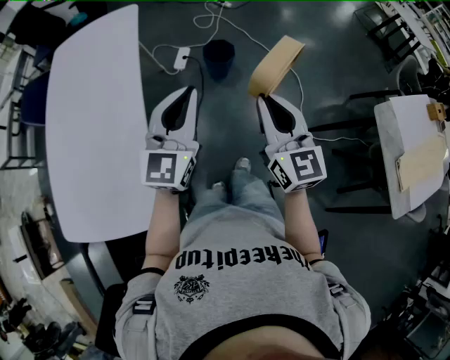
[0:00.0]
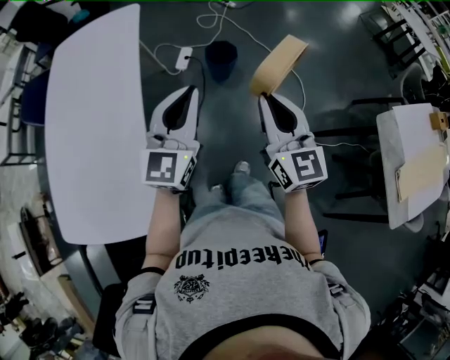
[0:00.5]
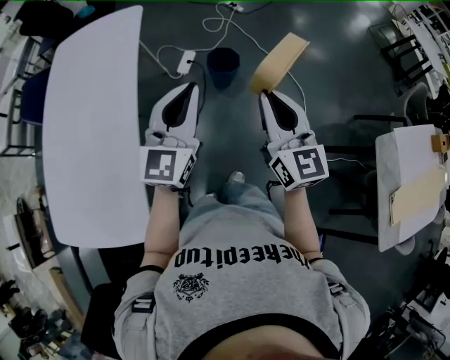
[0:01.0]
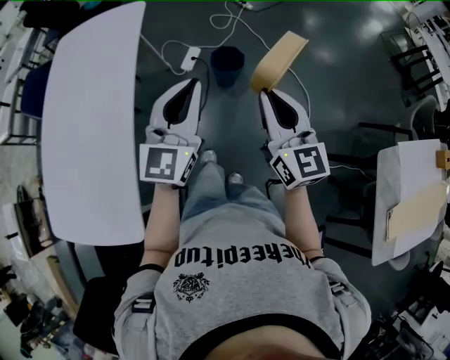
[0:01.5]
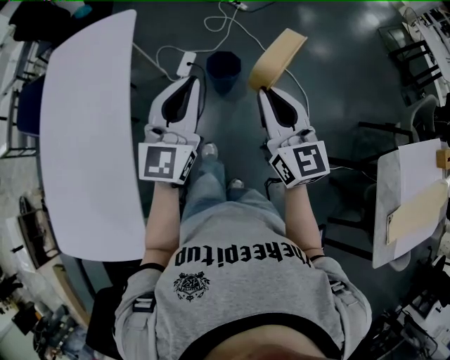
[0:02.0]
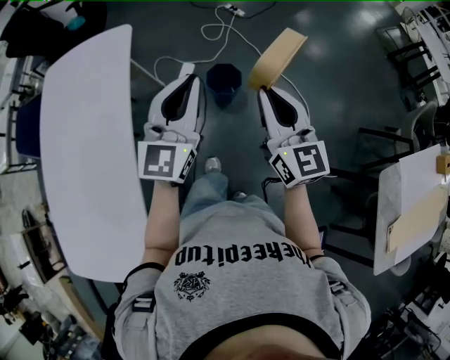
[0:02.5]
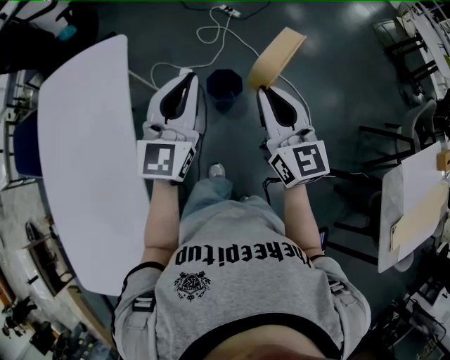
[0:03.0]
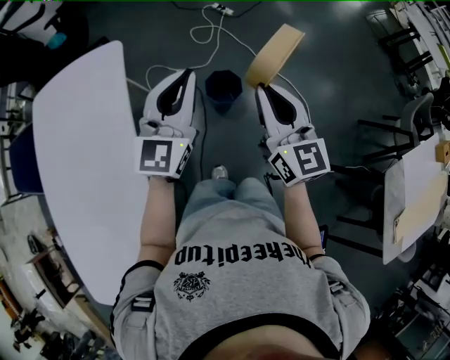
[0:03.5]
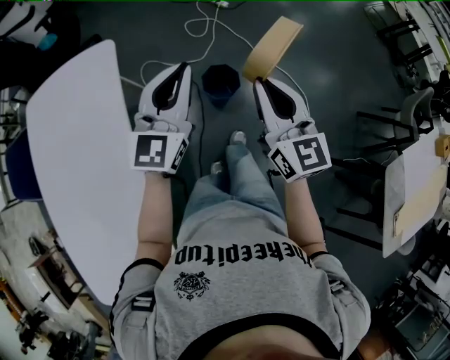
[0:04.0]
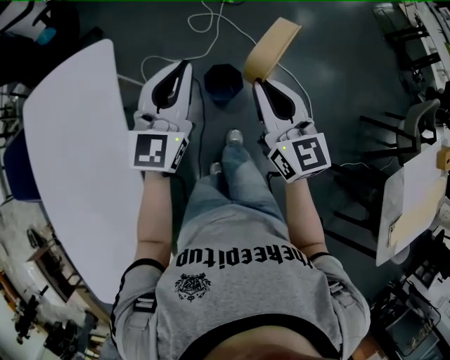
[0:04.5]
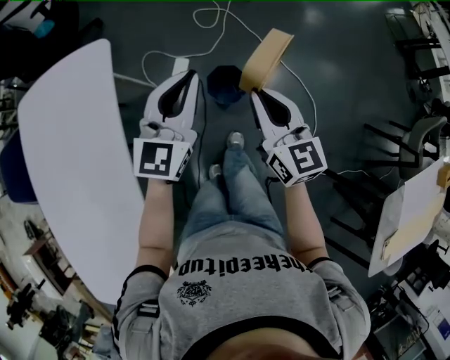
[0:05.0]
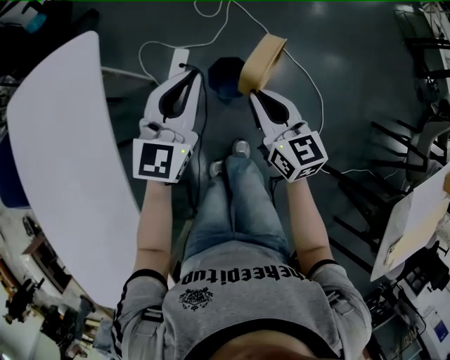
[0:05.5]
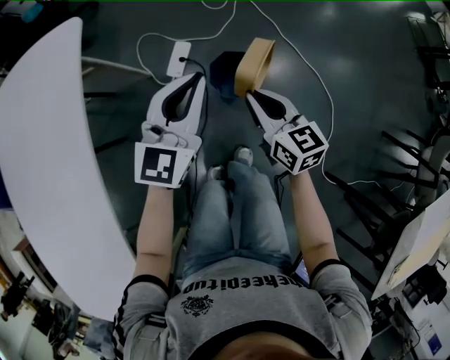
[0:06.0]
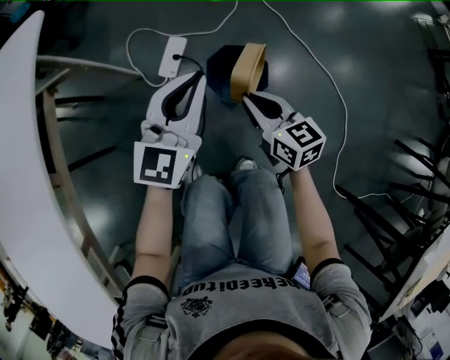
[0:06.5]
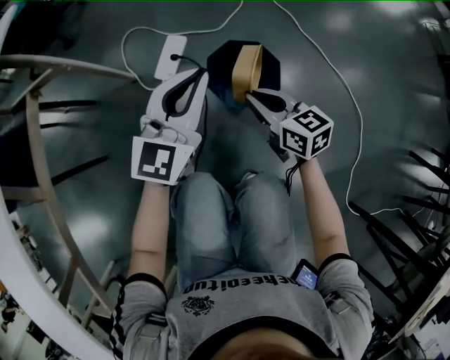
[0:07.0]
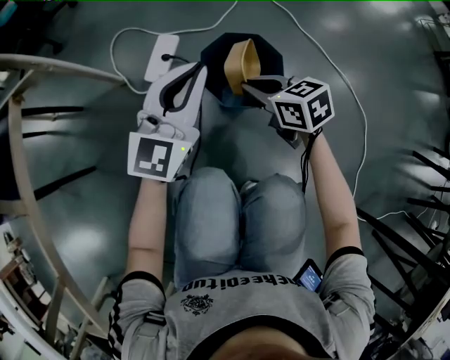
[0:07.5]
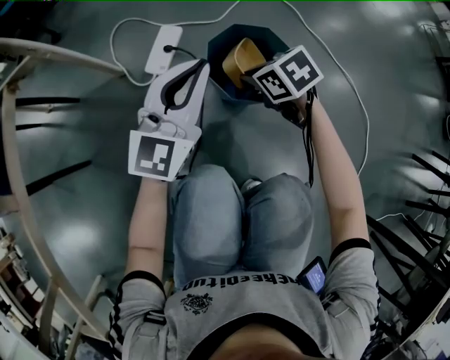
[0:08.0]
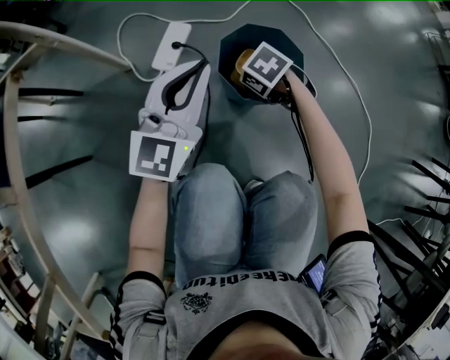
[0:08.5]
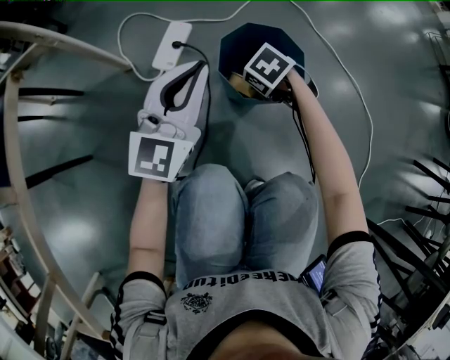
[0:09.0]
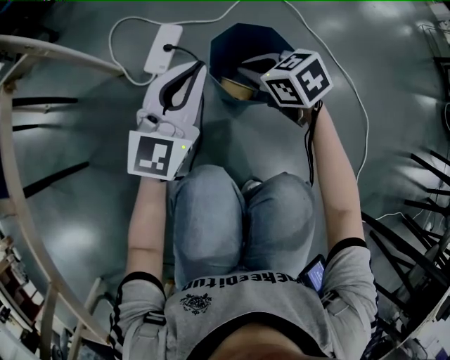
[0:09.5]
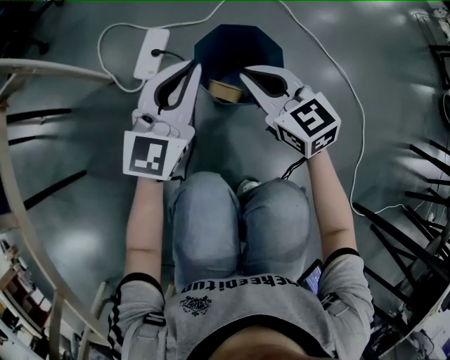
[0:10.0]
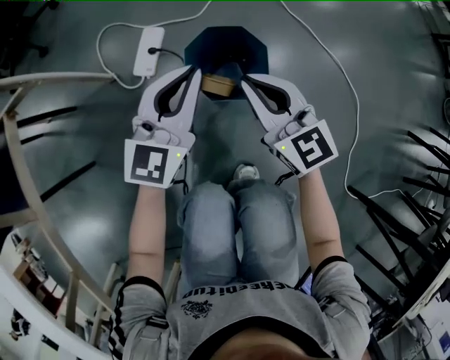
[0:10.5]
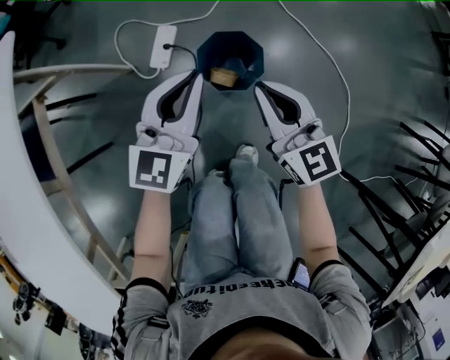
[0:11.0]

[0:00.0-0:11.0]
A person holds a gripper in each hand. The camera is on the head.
0.0 to 2.0 s: The two grippers go some 20 cm forward.
2.0 to 3.5 s: Both grippers move forward, about 20 cm.
3.5 to 5.5 s: The grippers both shift downward and forward by about 20 cm. The right gripper turns by about 20 degrees.
5.5 to 7.5 s: The two grippers go roughly 40 cm downward. The right gripper swivels roughly 30 degrees.
7.5 to 9.0 s: The right gripper is displaced downward by roughly 10 cm, and angles its fingers downward, by roughly 40 degrees. Meanwhile the left gripper ends up approximately 5 cm from where it was.
9.0 to 11.0 s: The left gripper heads upward, covering some 20 cm. The right gripper is displaced upward by approximately 35 cm, and tips its fingers upward by about 70 degrees.

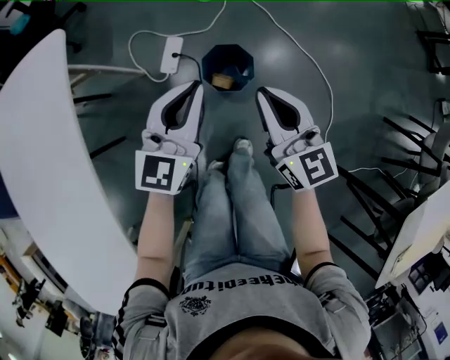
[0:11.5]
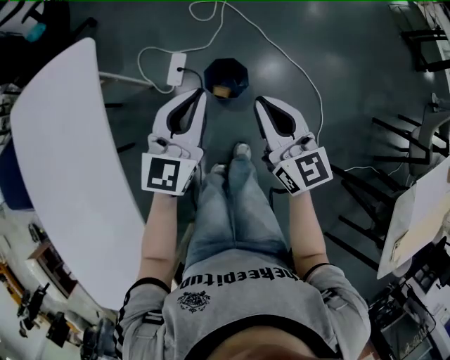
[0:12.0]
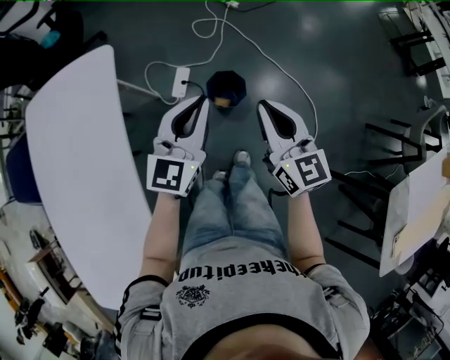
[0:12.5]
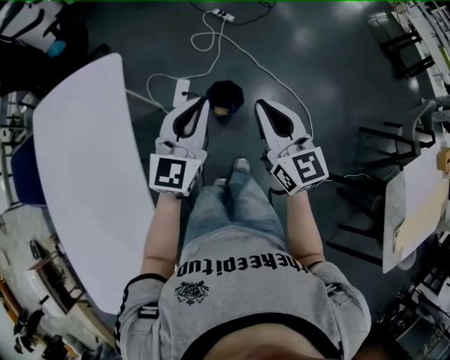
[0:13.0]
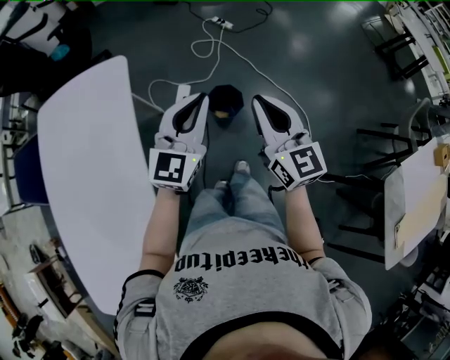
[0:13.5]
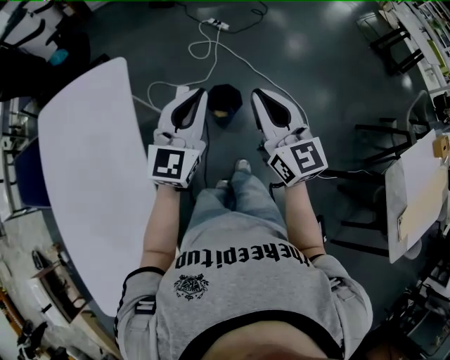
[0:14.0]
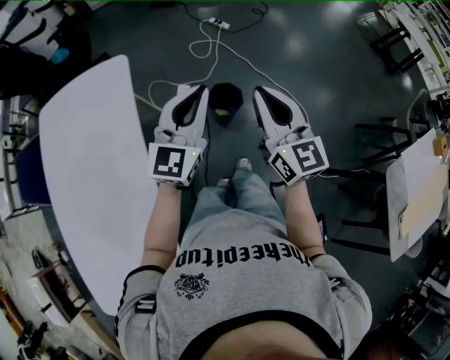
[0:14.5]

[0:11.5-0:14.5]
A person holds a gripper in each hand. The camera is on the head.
11.5 to 13.0 s: Both grippers travel together upward and backward, approximately 25 cm.
13.0 to 14.5 s: The right gripper is displaced upward by about 5 cm. The left gripper ends up approximately 5 cm from where it was.

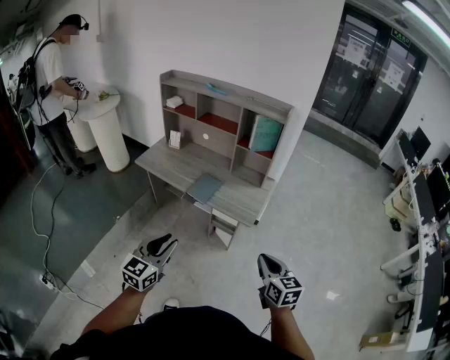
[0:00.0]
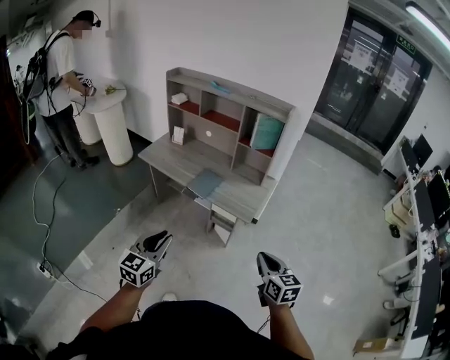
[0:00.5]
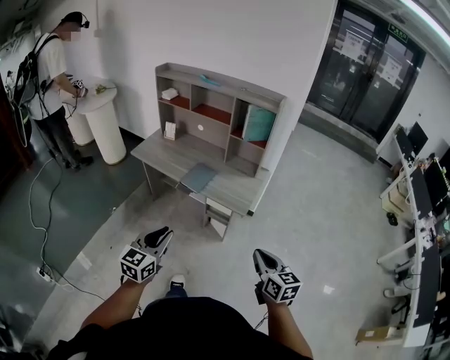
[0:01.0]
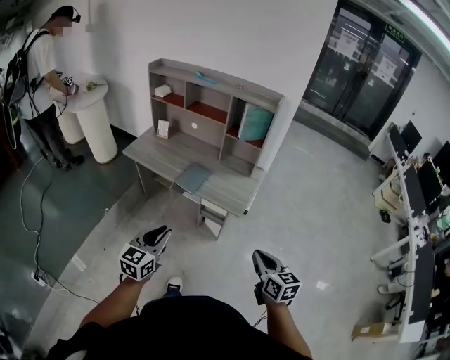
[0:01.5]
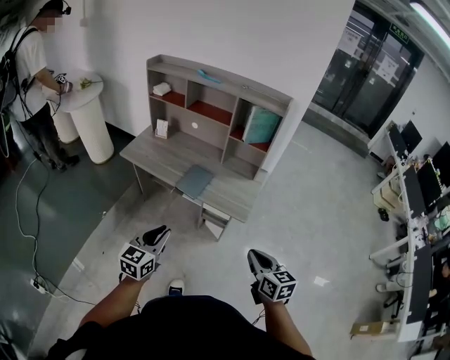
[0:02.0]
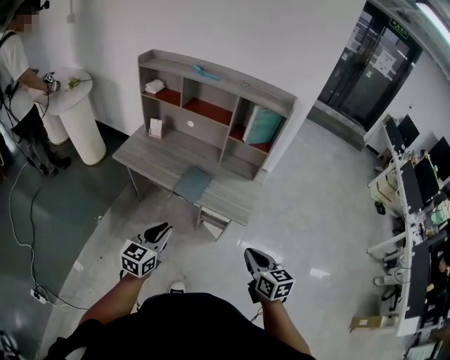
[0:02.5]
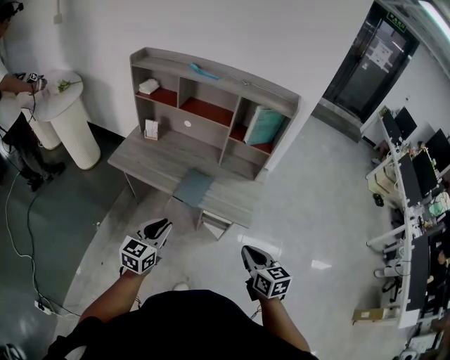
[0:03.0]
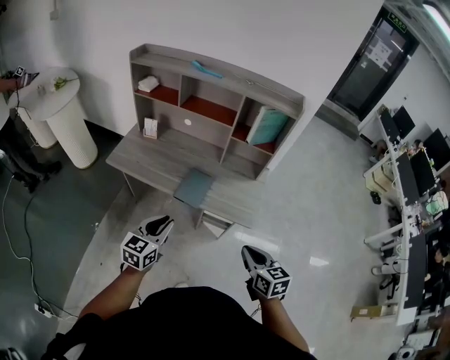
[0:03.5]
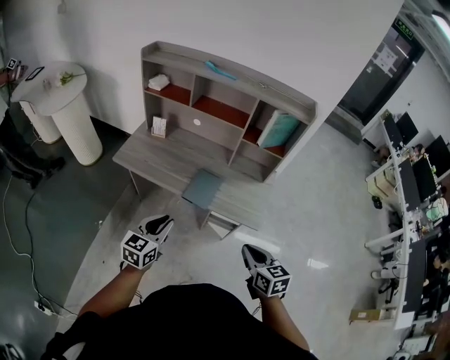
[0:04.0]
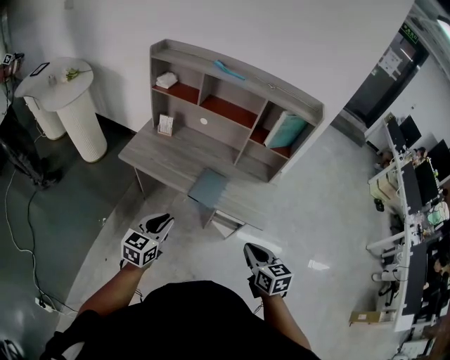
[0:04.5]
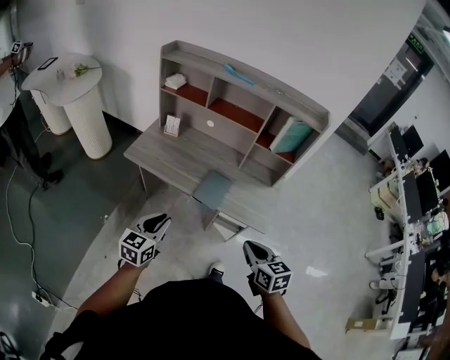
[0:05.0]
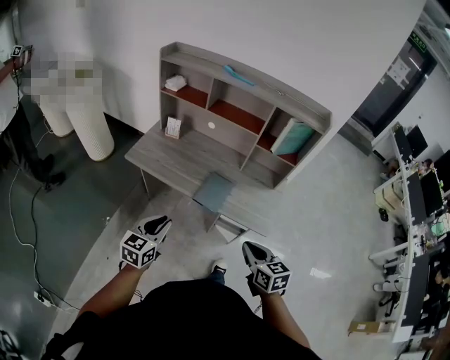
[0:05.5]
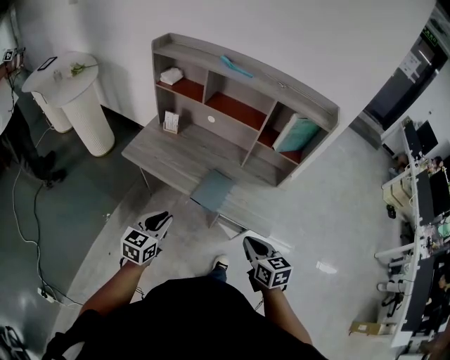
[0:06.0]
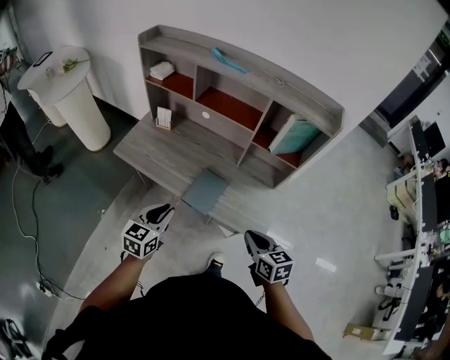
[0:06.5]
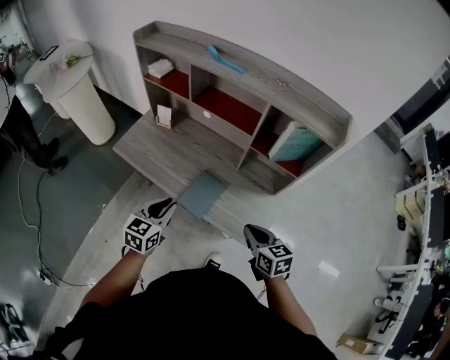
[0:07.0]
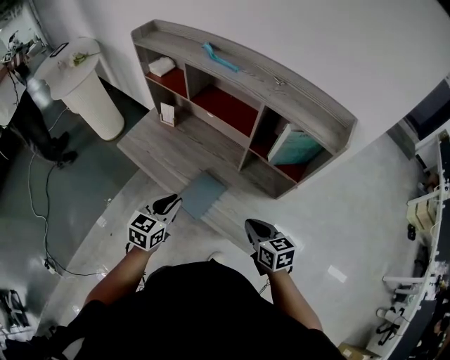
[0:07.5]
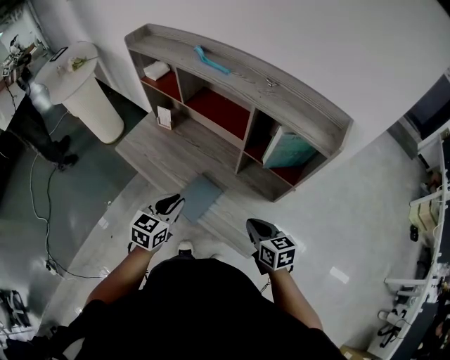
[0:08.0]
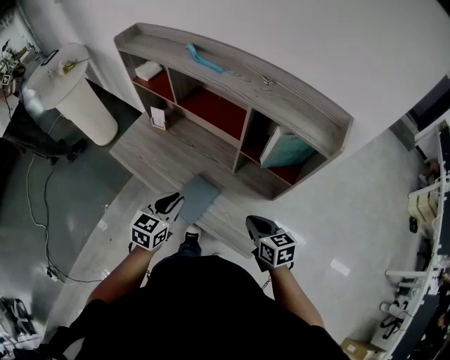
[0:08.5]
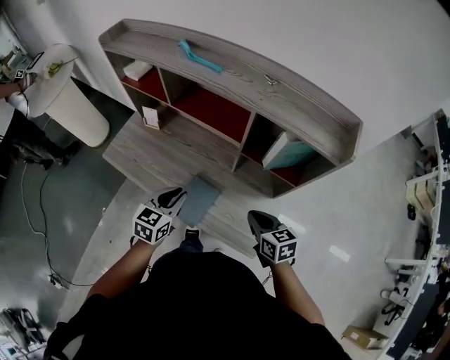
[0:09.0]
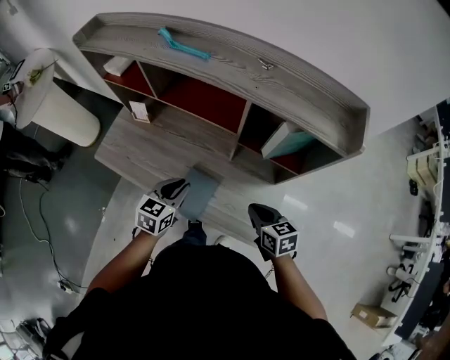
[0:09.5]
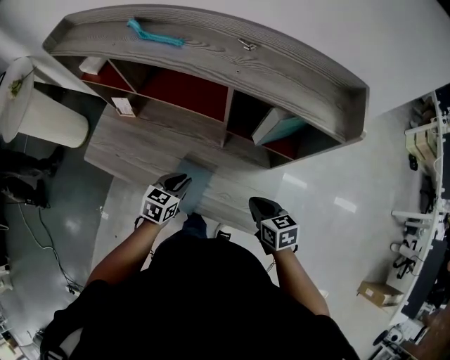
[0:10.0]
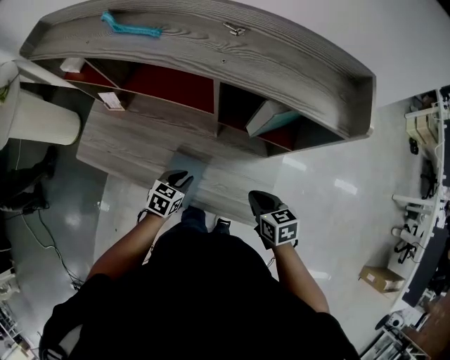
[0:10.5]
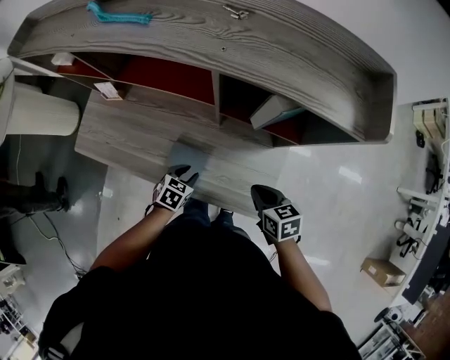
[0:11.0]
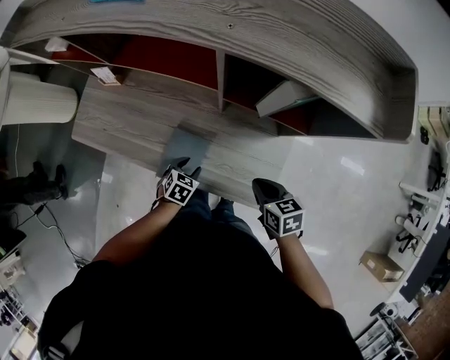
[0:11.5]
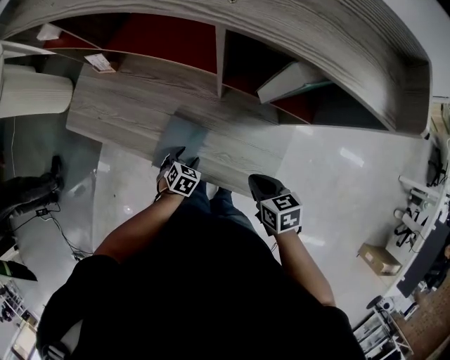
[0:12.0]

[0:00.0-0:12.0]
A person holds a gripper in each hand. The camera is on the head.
0.0 to 2.0 s: The left gripper goes some 10 cm forward. The right gripper ends up approximately 5 cm from where it was.
2.0 to 4.0 s: The right gripper moves to the left and forward, roughly 20 cm; the left gripper goes roughly 20 cm forward and to the left.
4.0 to 6.0 s: The right gripper moves forward, some 10 cm, while the left gripper moves roughly 5 cm.
6.0 to 8.0 s: The right gripper is displaced forward and to the right by some 25 cm. The left gripper goes about 25 cm to the right and forward.
8.0 to 10.0 s: The right gripper goes roughly 5 cm downward; the left gripper is displaced downward and forward by approximately 20 cm, and rotates some 20 degrees.
10.0 to 12.0 s: The right gripper goes approximately 5 cm downward, while the left gripper is displaced downward by about 20 cm, swivels roughly 30 degrees, and opens.

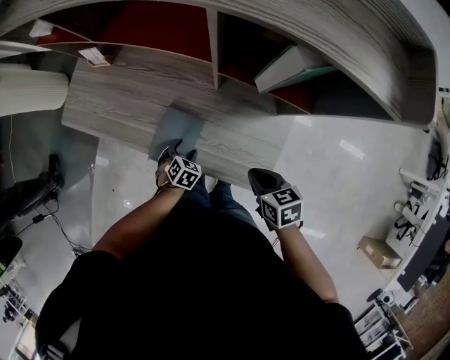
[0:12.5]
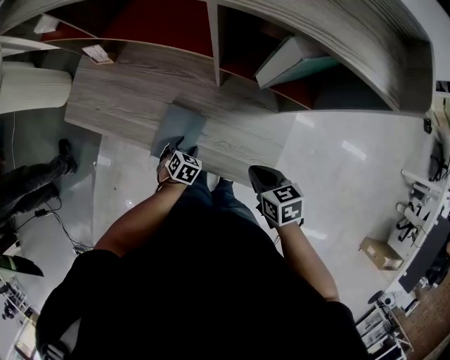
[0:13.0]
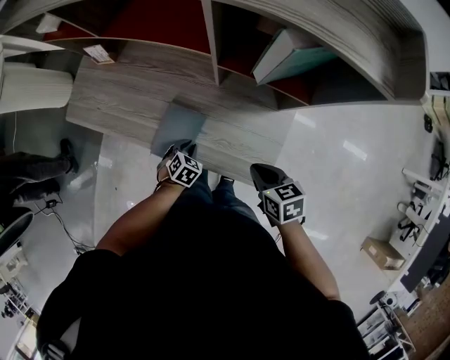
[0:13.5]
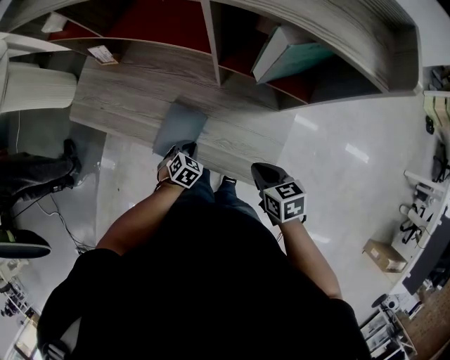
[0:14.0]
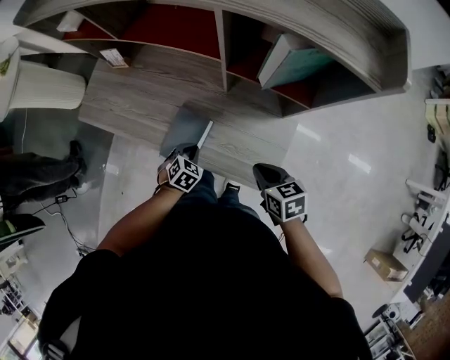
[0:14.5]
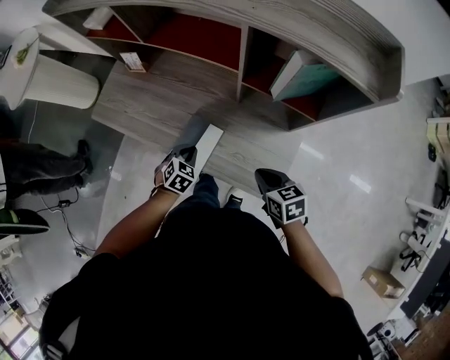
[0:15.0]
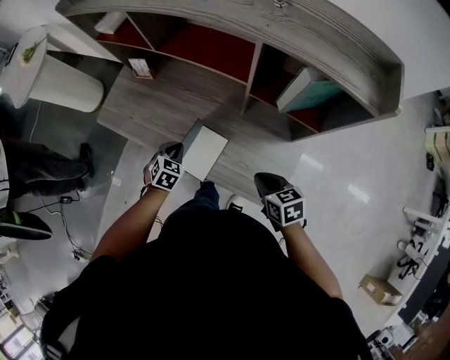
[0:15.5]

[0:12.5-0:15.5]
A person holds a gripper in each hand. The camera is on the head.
12.5 to 14.0 s: The left gripper closes up.
14.0 to 15.5 s: The left gripper travels upward, to the left and forward by some 20 cm. The right gripper ends up some 5 cm from where it was.
